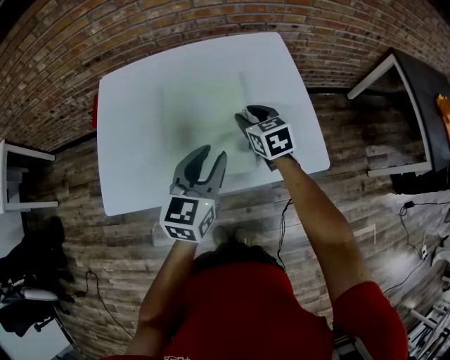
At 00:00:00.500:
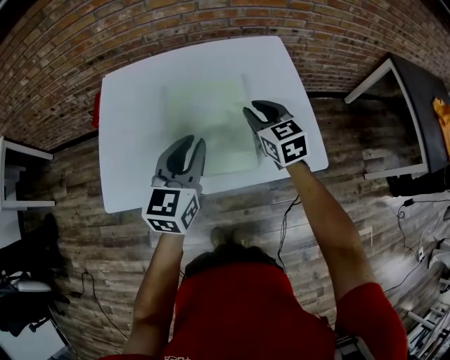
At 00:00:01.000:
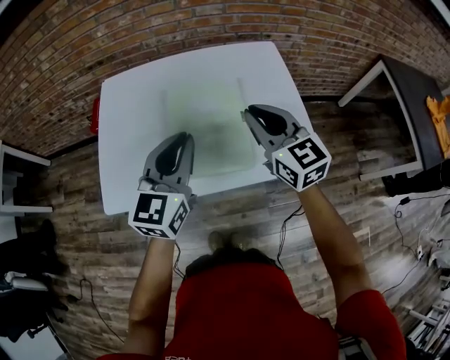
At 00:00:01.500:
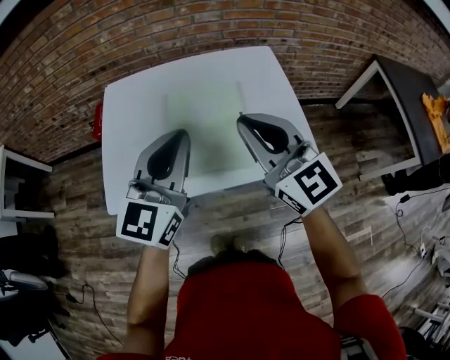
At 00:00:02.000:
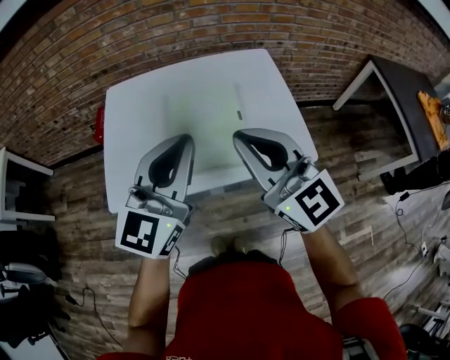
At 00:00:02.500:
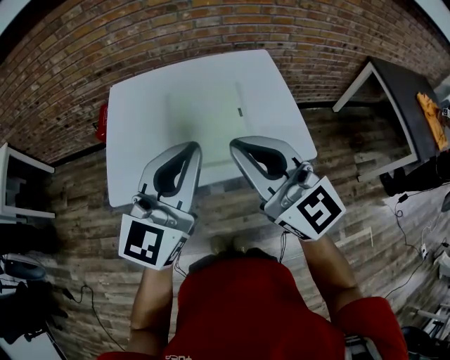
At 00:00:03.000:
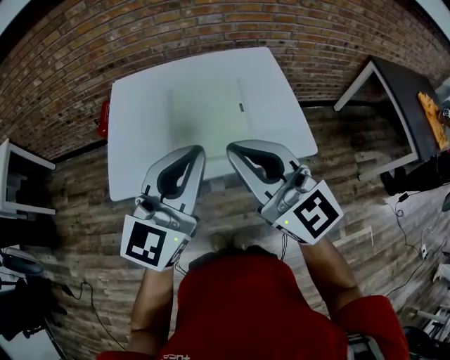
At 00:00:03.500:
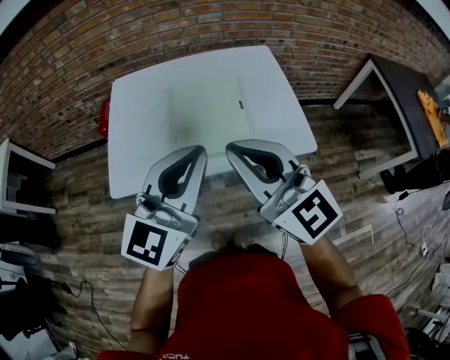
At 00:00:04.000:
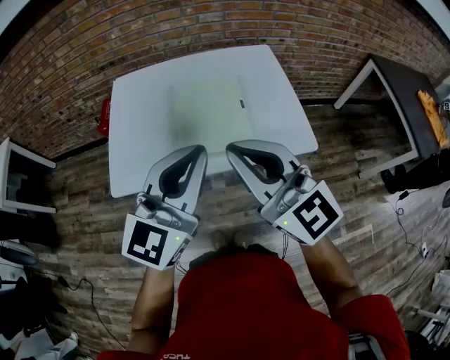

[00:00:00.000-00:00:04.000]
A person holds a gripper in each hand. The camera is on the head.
00:00:00.000 to 00:00:02.000: The left gripper travels upward and backward by approximately 20 cm, swivels some 30 degrees, and closes its fingers. Meanwhile the right gripper travels upward and backward by roughly 35 cm, angles its fingers upward, by about 40 degrees, and closes.
00:00:02.000 to 00:00:04.000: The grippers both shift backward by approximately 10 cm.

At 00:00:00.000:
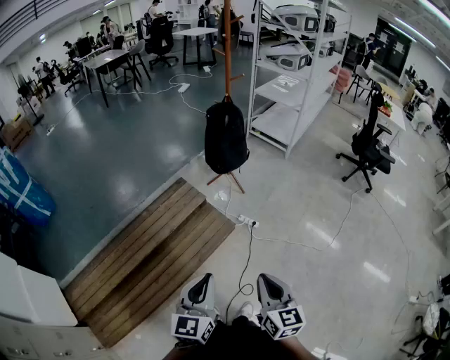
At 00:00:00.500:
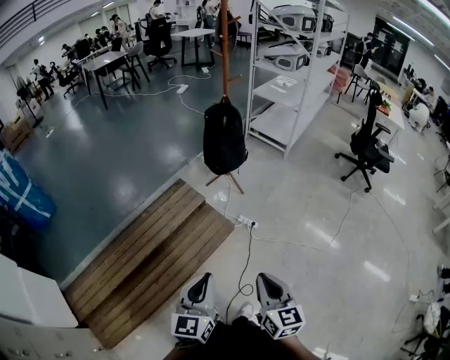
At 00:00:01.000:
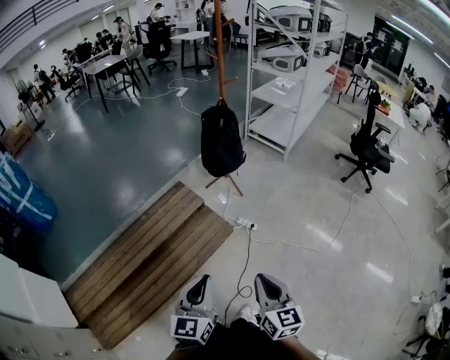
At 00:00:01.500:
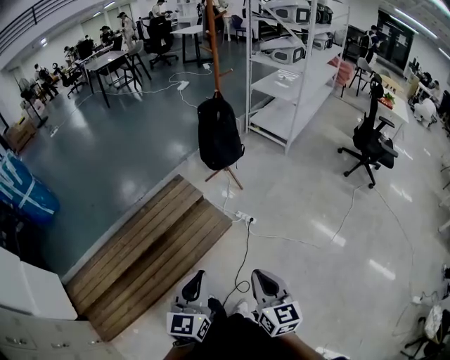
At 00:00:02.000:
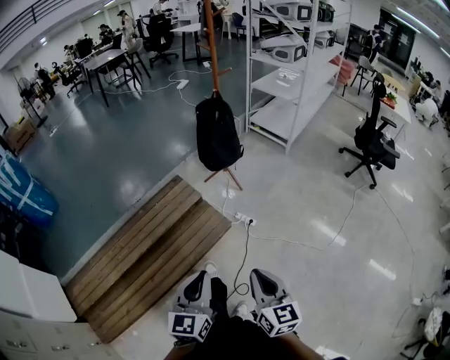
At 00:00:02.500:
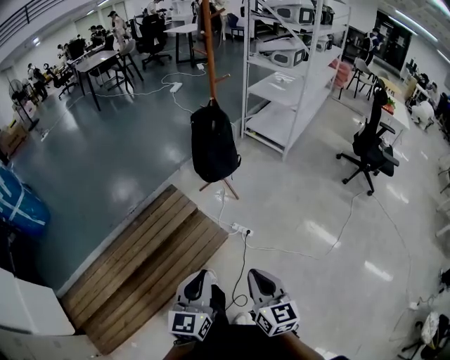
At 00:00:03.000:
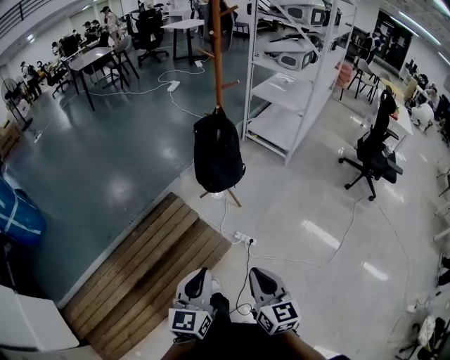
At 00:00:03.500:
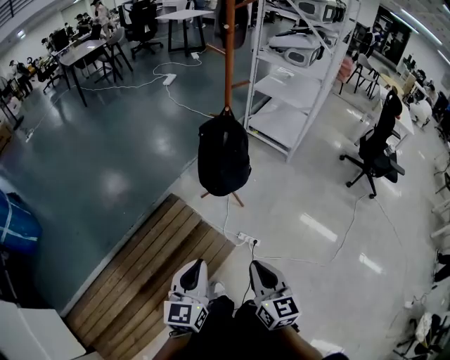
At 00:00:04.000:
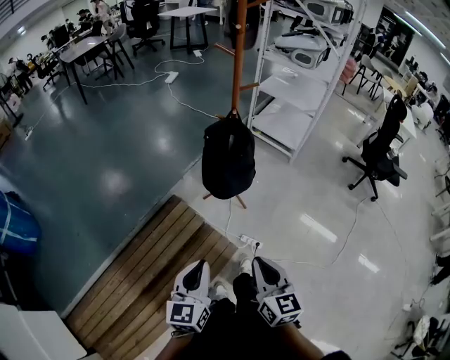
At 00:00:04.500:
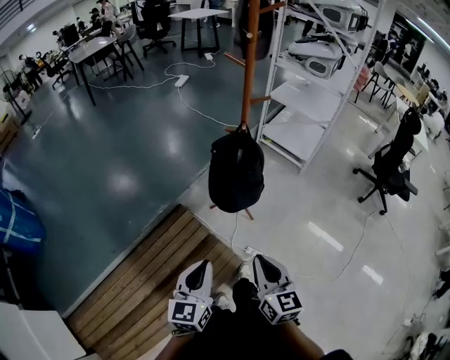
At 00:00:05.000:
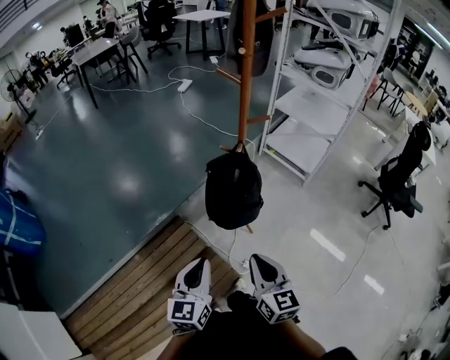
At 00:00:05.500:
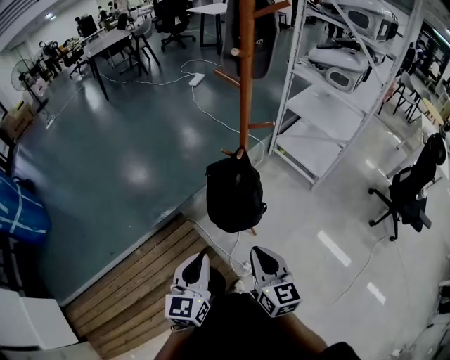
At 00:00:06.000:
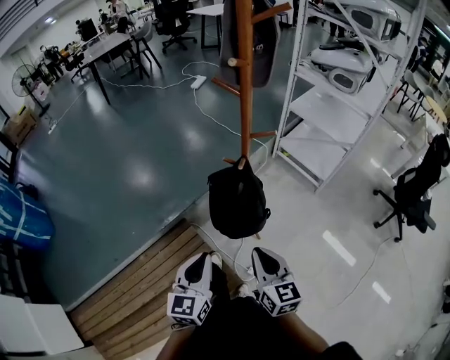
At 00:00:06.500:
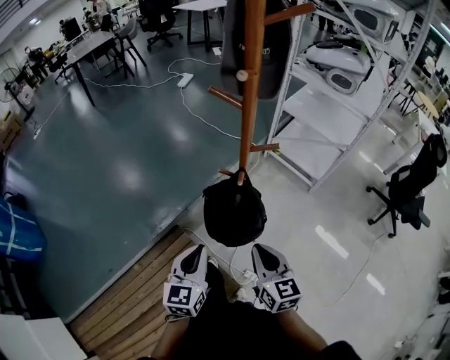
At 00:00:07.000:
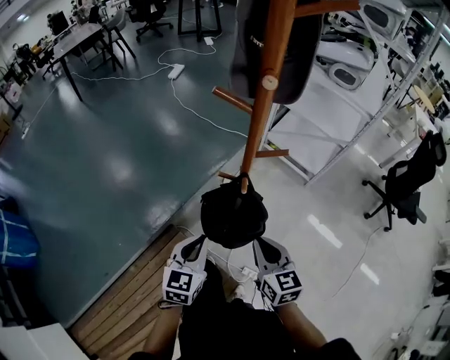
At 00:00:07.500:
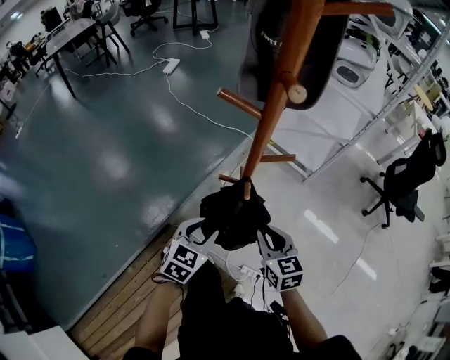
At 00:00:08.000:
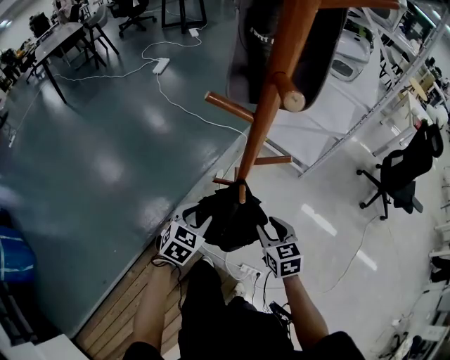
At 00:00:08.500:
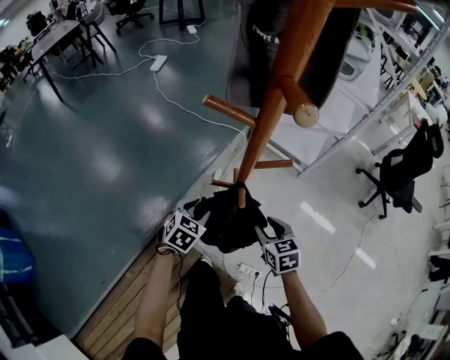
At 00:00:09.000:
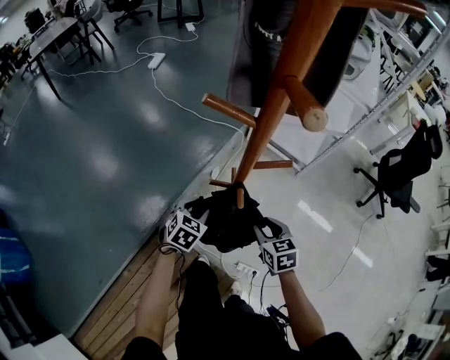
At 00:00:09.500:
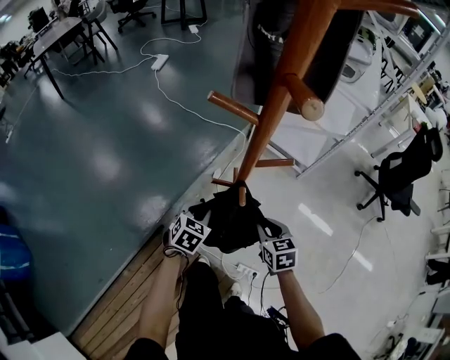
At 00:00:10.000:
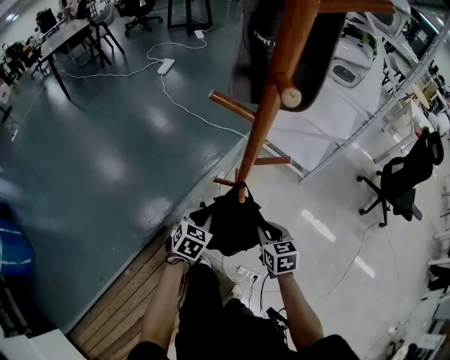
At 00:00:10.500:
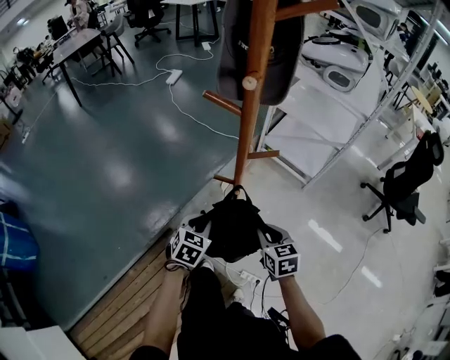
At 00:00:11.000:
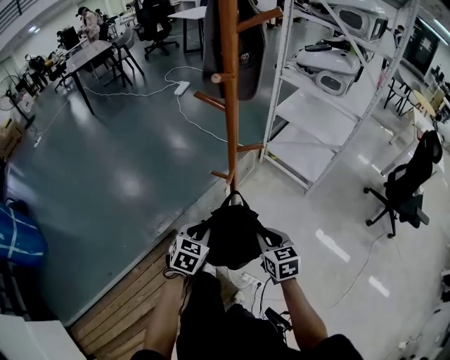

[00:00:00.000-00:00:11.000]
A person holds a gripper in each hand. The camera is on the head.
00:00:00.000 to 00:00:02.000: Both grippers move to the right, roughly 10 cm.
00:00:02.000 to 00:00:03.500: The two grippers go approximately 35 cm forward.
00:00:03.500 to 00:00:05.500: Both grippers move forward, approximately 30 cm.
00:00:05.500 to 00:00:07.500: Both grippers travel together forward, roughly 25 cm. The left gripper turns by approximately 40 degrees, and opens its fingers.
00:00:07.500 to 00:00:09.000: The grippers both shift downward and forward by approximately 10 cm. The right gripper opens its fingers.
00:00:09.000 to 00:00:11.000: The two grippers go approximately 15 cm backward and upward. The left gripper closes.

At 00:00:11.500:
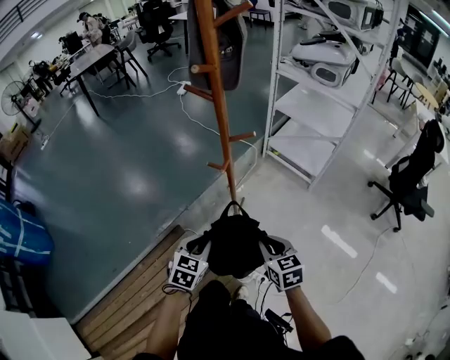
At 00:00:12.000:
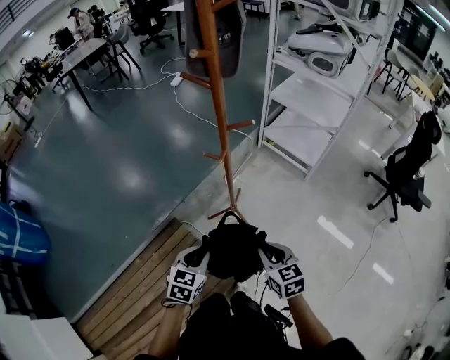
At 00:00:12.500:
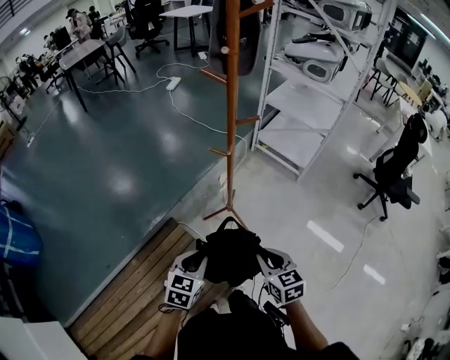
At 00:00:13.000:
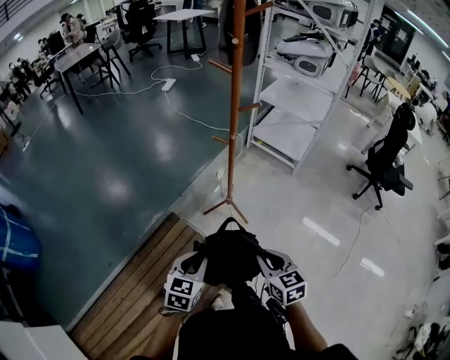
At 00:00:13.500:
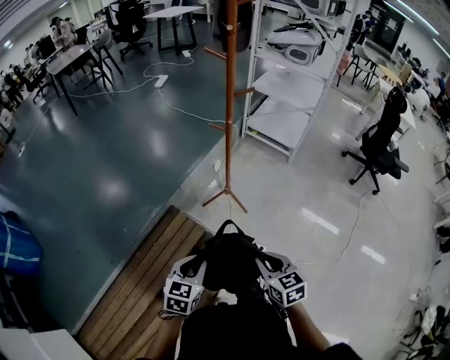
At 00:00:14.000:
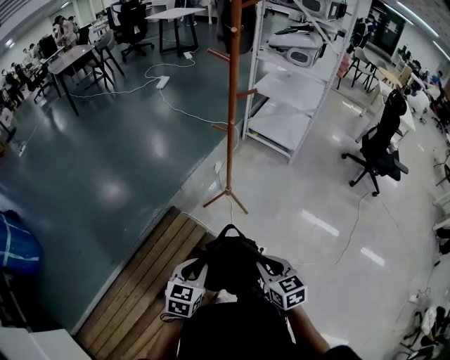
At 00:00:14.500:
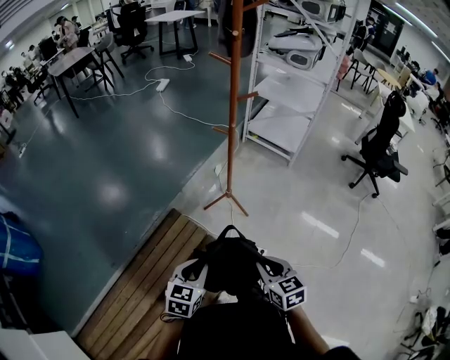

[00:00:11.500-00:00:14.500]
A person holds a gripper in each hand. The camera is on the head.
00:00:11.500 to 00:00:13.000: Both grippers move backward and to the left, about 25 cm.
00:00:13.000 to 00:00:14.500: Both grippers travel together backward, some 10 cm.

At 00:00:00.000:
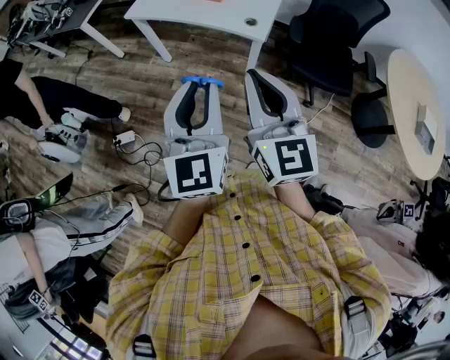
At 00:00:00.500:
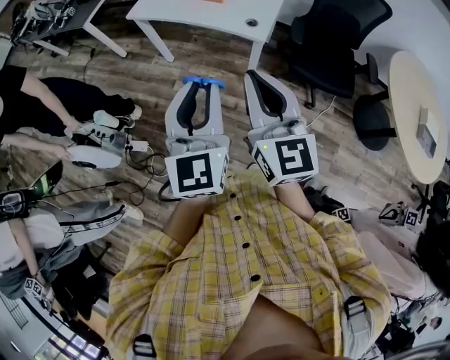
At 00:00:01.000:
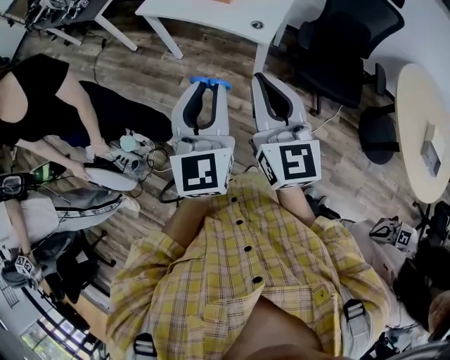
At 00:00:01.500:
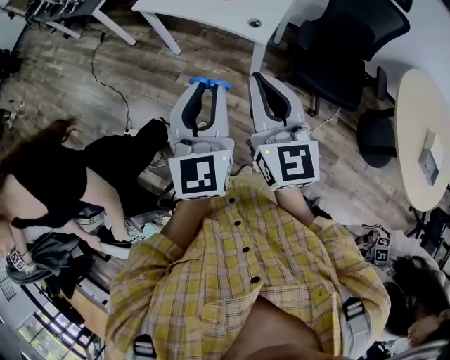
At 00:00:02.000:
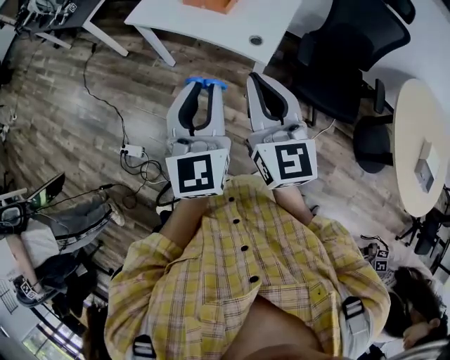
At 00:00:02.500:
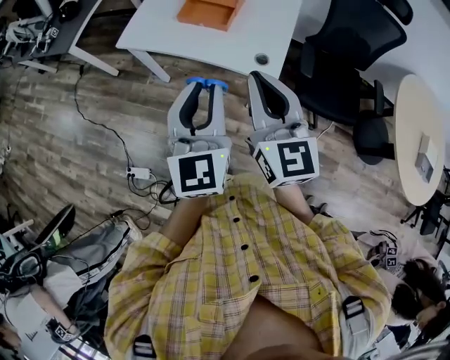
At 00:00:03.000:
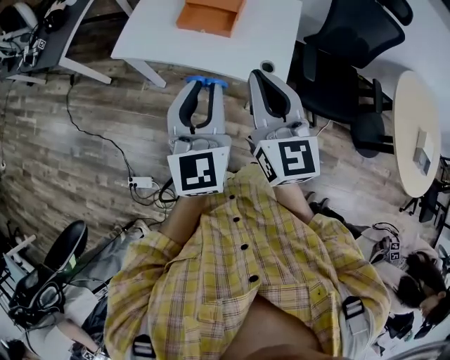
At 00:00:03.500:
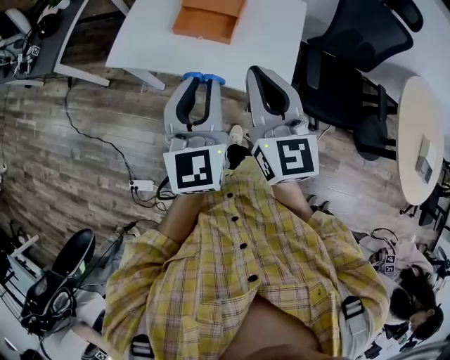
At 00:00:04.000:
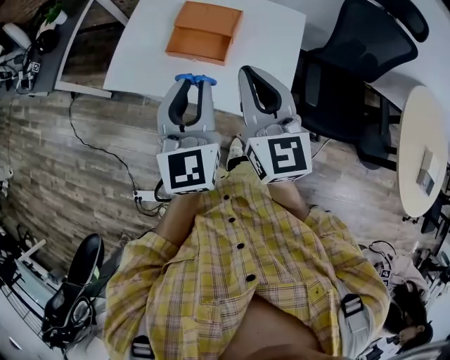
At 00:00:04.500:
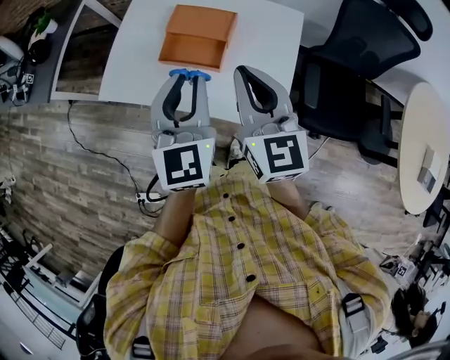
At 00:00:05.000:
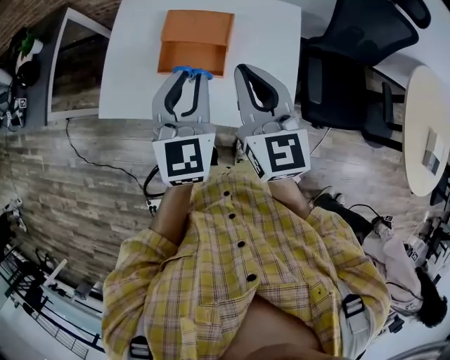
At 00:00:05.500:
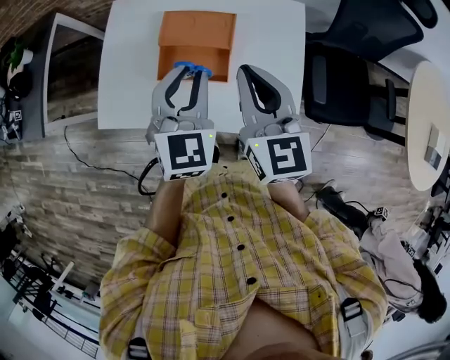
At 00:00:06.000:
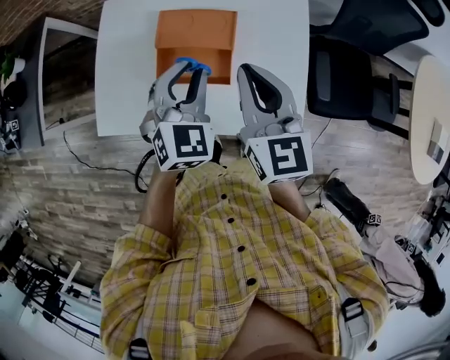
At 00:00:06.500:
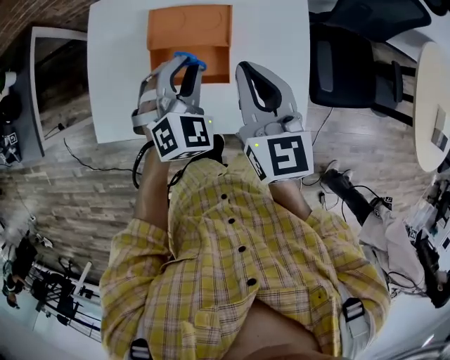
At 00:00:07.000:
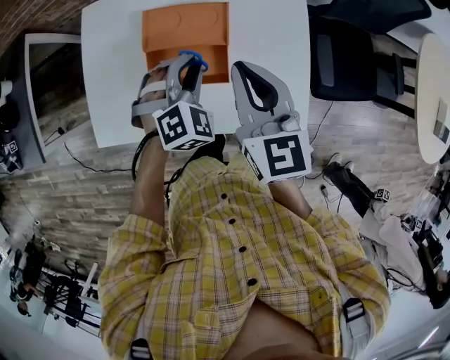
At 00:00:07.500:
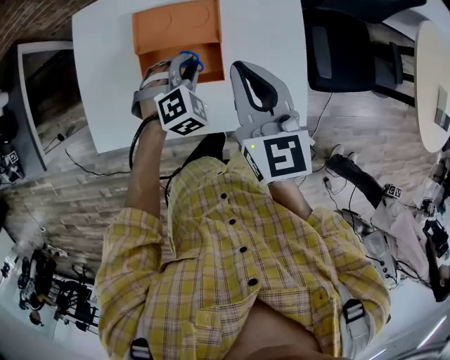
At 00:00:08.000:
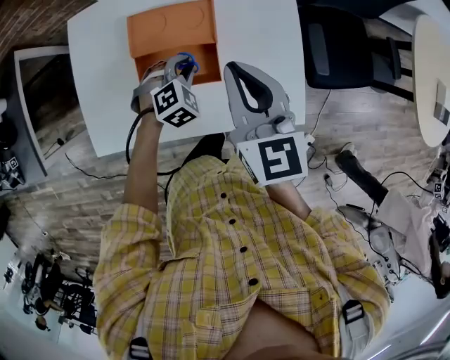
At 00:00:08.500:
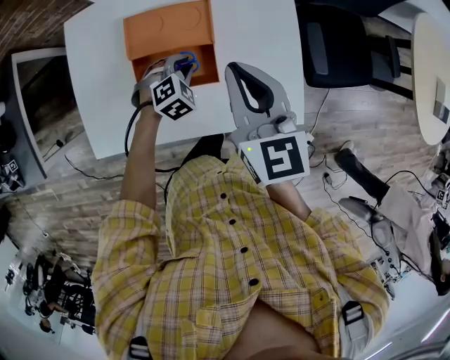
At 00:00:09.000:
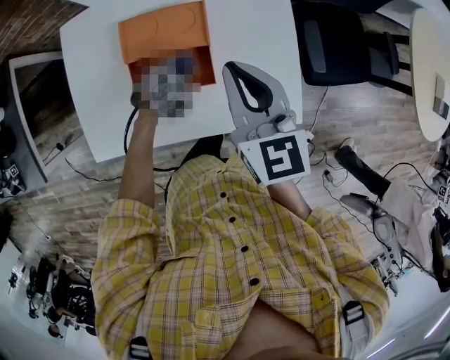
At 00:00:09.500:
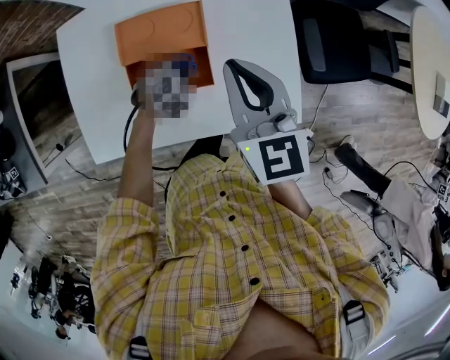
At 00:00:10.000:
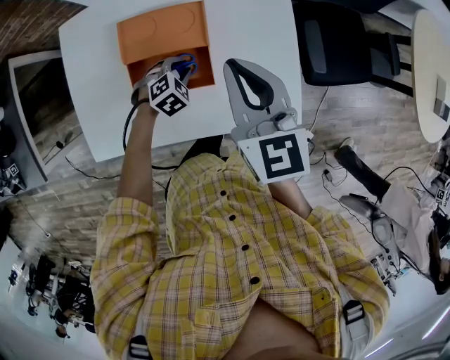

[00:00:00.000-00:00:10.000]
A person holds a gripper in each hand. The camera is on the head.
00:00:00.000 to 00:00:02.000: Both grippers move forward and to the right, approximately 15 cm.
00:00:02.000 to 00:00:04.000: Both grippers move forward, approximately 40 cm.
00:00:04.000 to 00:00:06.000: Both grippers move forward and downward, some 25 cm. The left gripper swivels some 40 degrees.
00:00:06.000 to 00:00:08.000: The left gripper moves downward, roughly 20 cm, and tips its fingers downward by about 30 degrees.
00:00:08.000 to 00:00:10.000: The left gripper goes about 5 cm downward.
